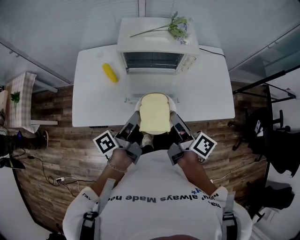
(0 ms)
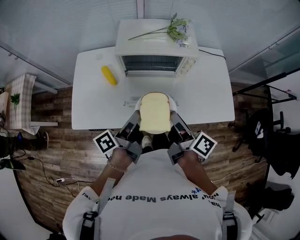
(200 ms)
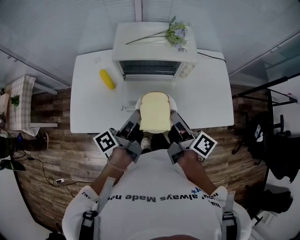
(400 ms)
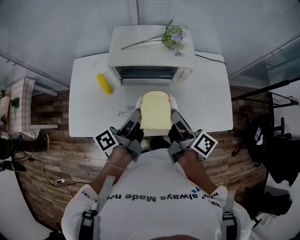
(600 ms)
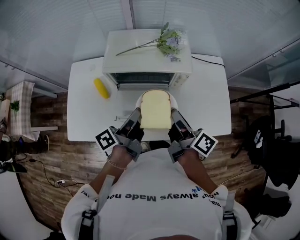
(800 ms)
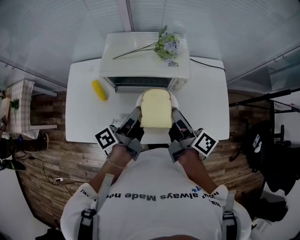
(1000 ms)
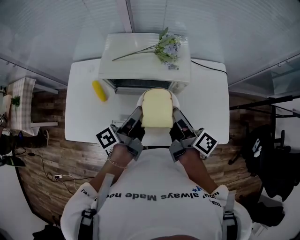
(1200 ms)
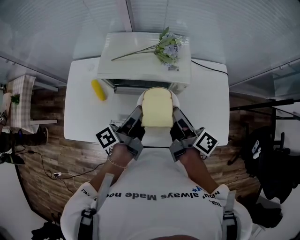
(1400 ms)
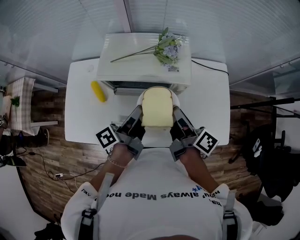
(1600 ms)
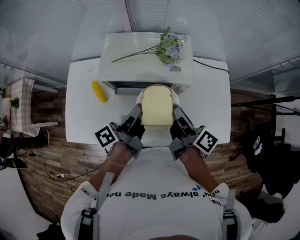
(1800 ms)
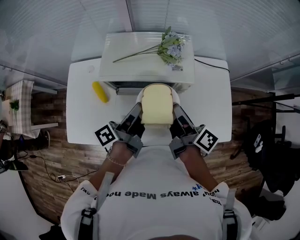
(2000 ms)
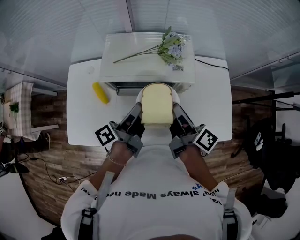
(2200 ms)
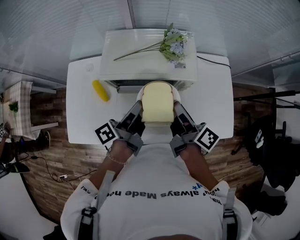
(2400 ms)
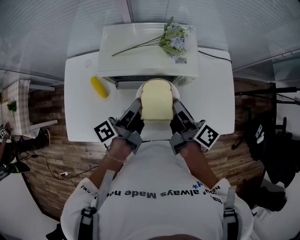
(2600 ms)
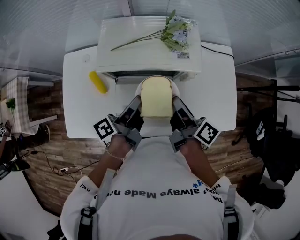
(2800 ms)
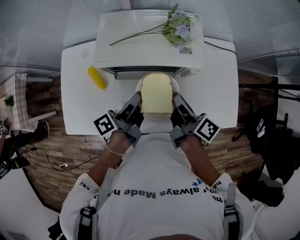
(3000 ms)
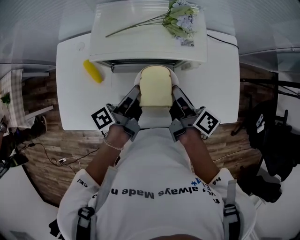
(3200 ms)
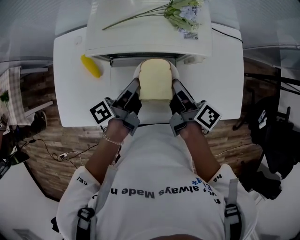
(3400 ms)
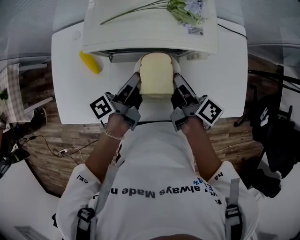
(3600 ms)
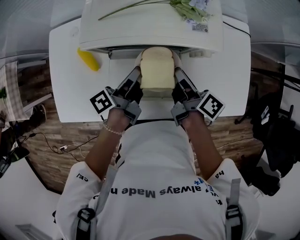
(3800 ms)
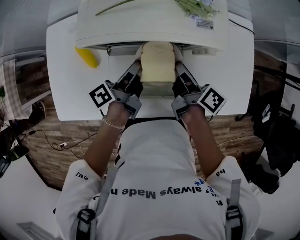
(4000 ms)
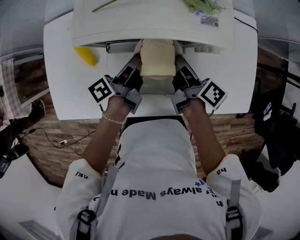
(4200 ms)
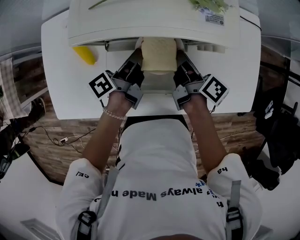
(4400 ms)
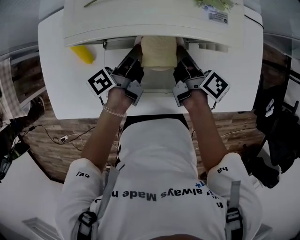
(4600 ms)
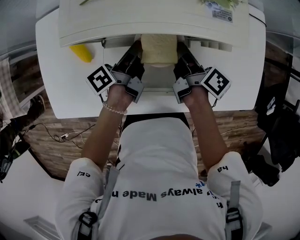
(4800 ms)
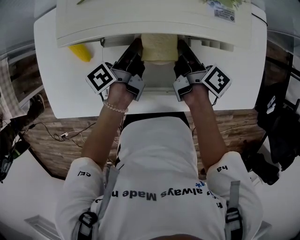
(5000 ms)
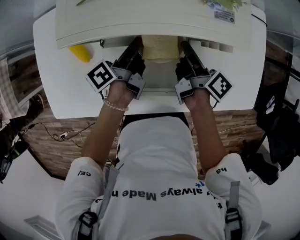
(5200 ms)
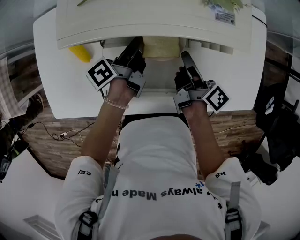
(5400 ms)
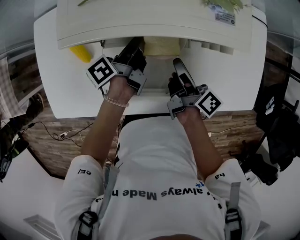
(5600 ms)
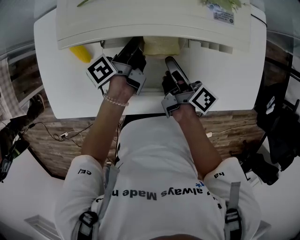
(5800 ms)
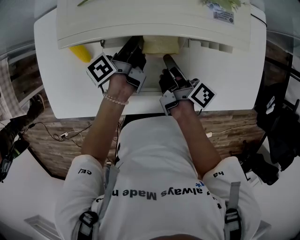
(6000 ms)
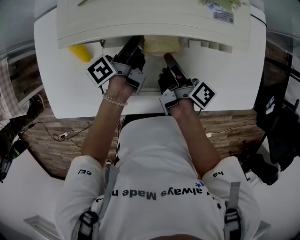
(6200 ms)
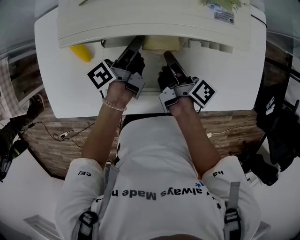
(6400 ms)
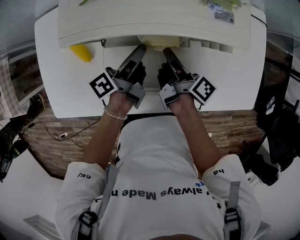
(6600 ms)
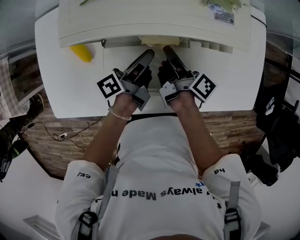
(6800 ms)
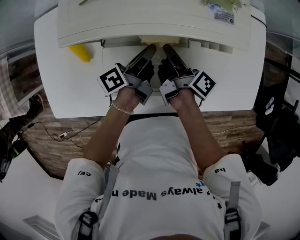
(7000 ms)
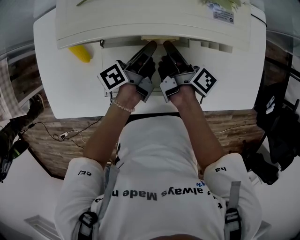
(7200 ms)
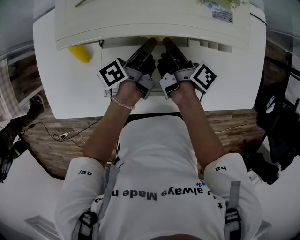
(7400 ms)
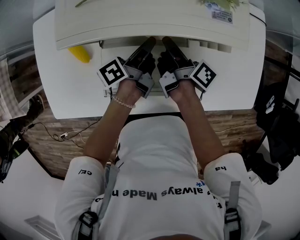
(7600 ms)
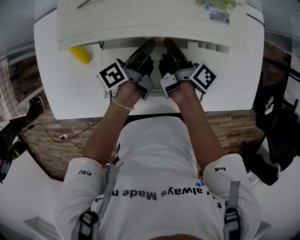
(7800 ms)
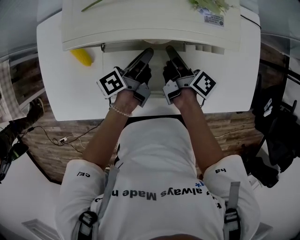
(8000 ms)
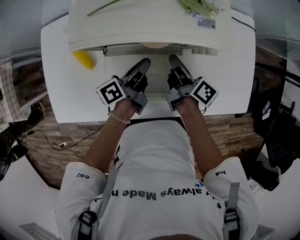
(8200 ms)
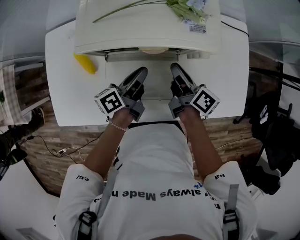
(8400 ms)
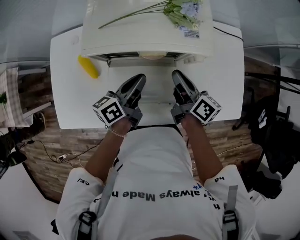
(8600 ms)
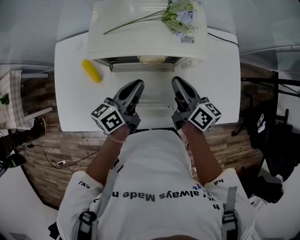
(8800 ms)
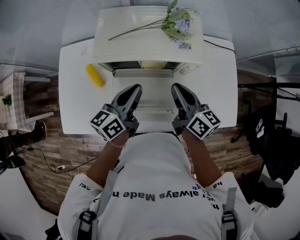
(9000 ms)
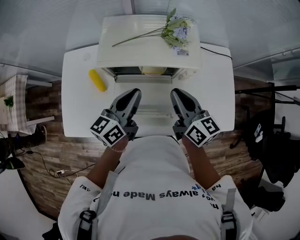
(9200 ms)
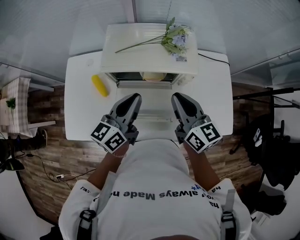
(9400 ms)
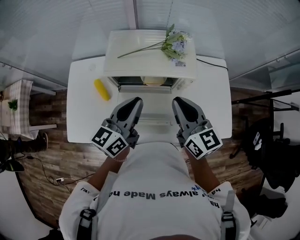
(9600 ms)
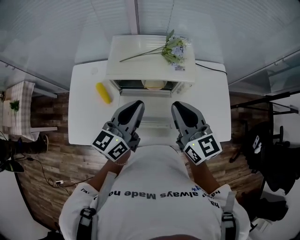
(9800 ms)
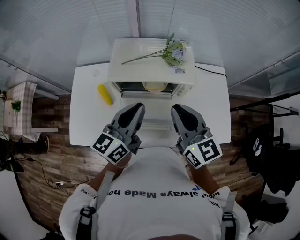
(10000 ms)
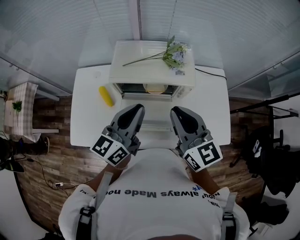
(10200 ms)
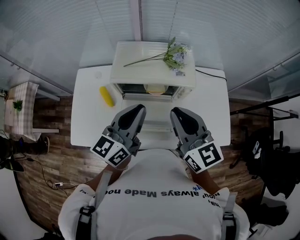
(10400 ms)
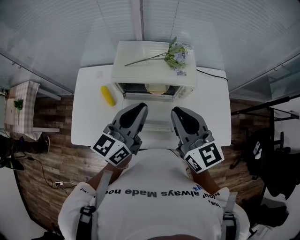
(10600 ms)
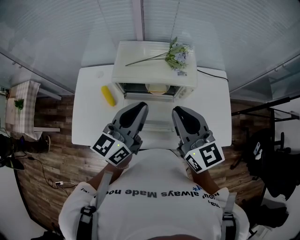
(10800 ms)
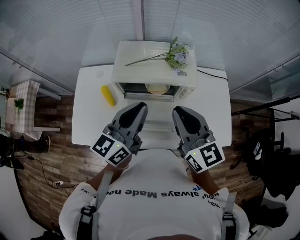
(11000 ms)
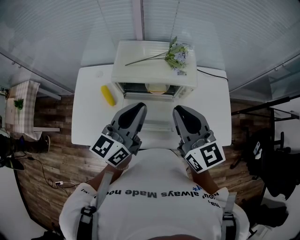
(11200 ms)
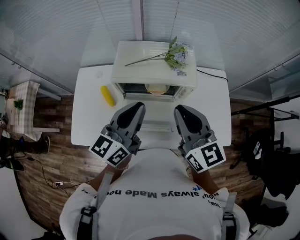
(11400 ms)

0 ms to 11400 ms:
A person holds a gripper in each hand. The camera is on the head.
0 ms to 1400 ms: The right gripper changes place by about 20 cm.
1400 ms to 2800 ms: The right gripper moves some 5 cm.
2800 ms to 4200 ms: The right gripper moves downward, approximately 15 cm.
5600 ms to 7200 ms: The right gripper shifts by some 5 cm.
7200 ms to 8600 ms: The right gripper shifts about 10 cm upward, and rotates roughly 30 degrees.
8600 ms to 10000 ms: The right gripper shifts approximately 25 cm upward, and rolls counterclockwise, seen from behind, by some 50 degrees.

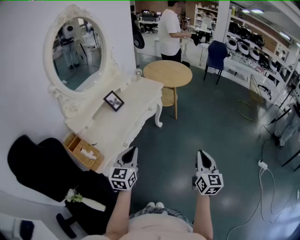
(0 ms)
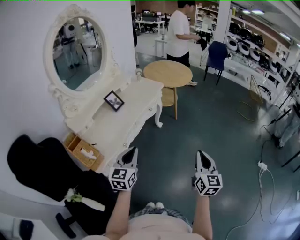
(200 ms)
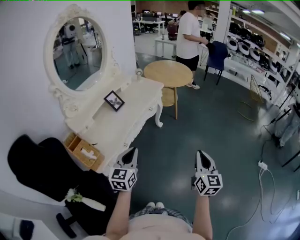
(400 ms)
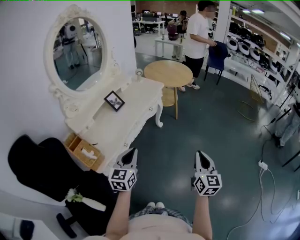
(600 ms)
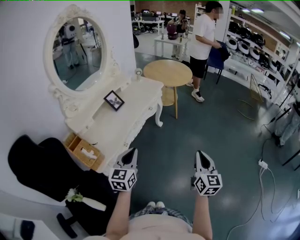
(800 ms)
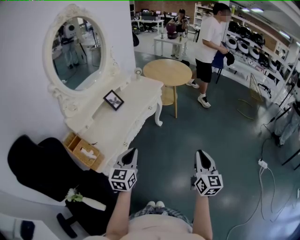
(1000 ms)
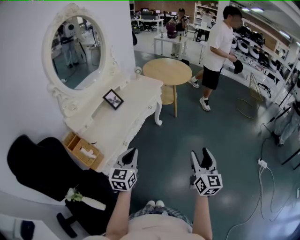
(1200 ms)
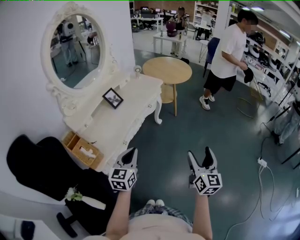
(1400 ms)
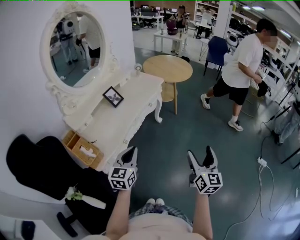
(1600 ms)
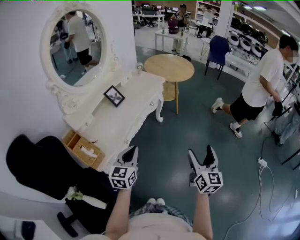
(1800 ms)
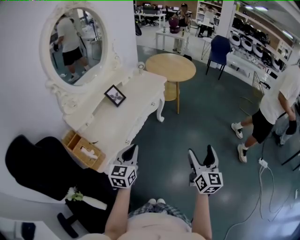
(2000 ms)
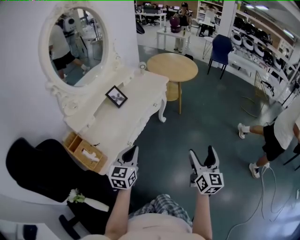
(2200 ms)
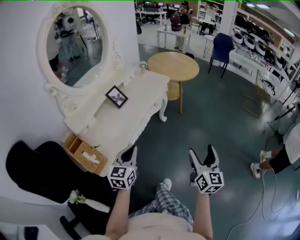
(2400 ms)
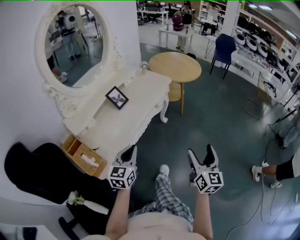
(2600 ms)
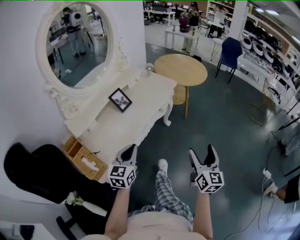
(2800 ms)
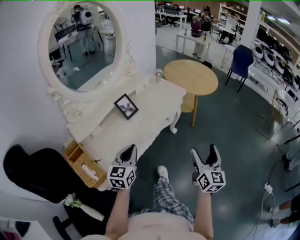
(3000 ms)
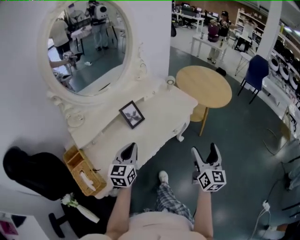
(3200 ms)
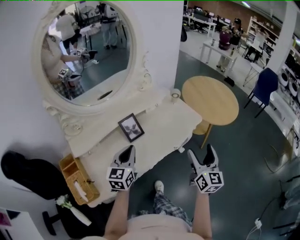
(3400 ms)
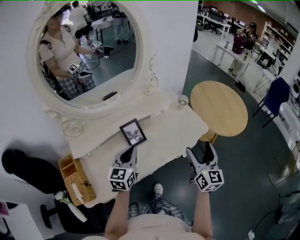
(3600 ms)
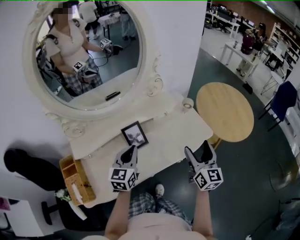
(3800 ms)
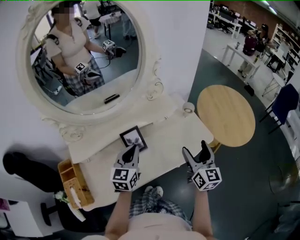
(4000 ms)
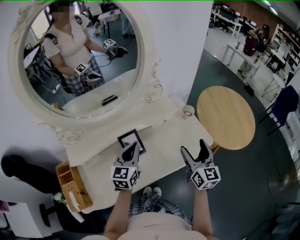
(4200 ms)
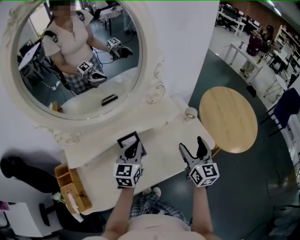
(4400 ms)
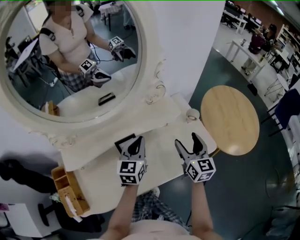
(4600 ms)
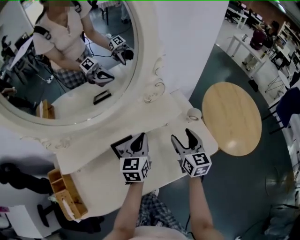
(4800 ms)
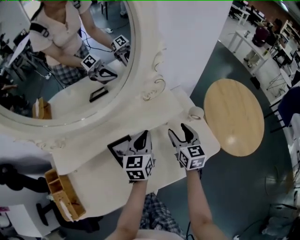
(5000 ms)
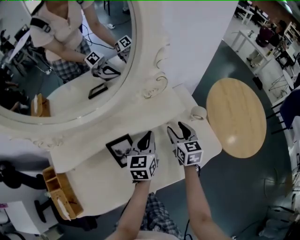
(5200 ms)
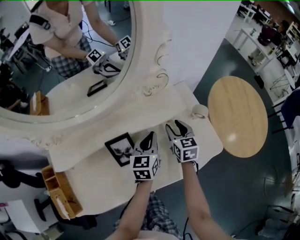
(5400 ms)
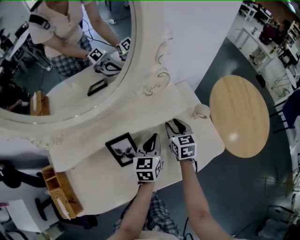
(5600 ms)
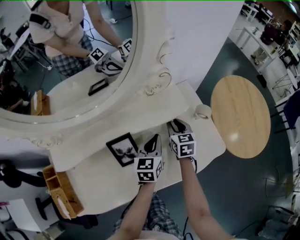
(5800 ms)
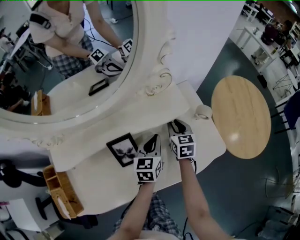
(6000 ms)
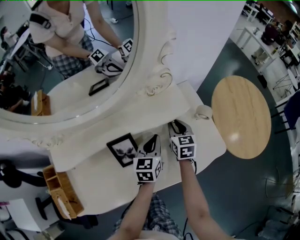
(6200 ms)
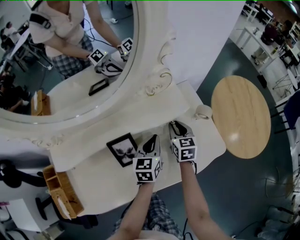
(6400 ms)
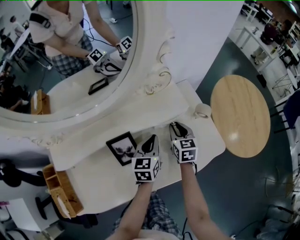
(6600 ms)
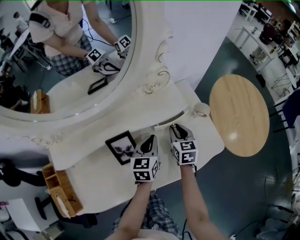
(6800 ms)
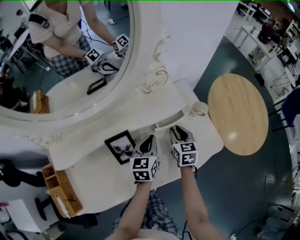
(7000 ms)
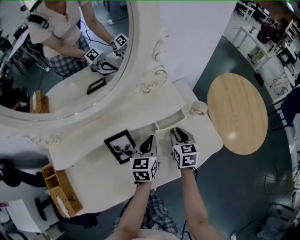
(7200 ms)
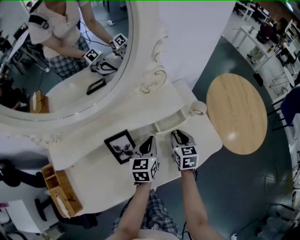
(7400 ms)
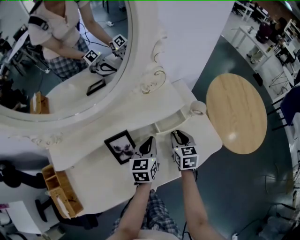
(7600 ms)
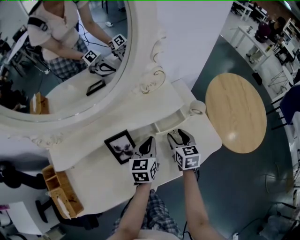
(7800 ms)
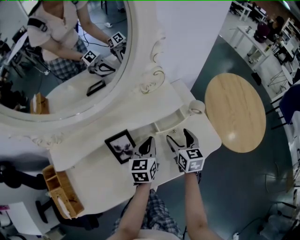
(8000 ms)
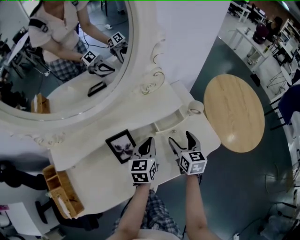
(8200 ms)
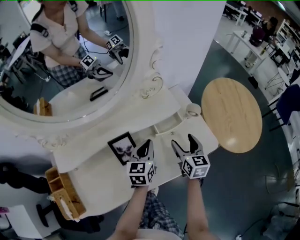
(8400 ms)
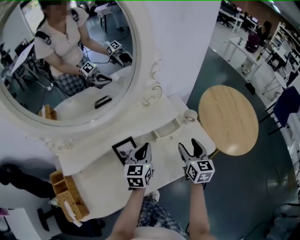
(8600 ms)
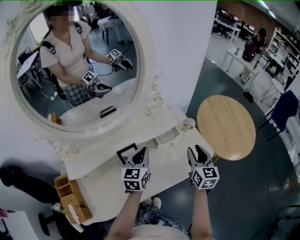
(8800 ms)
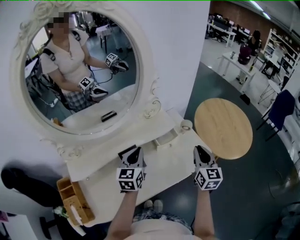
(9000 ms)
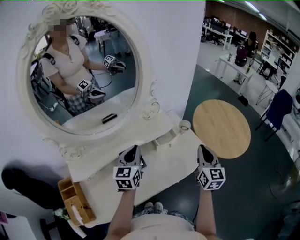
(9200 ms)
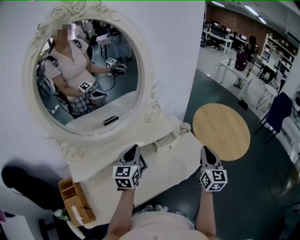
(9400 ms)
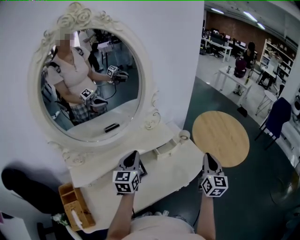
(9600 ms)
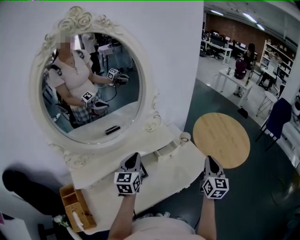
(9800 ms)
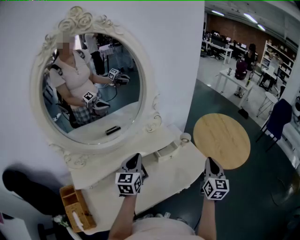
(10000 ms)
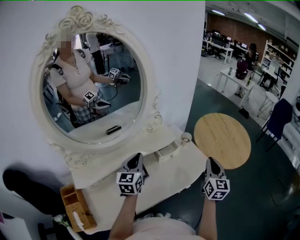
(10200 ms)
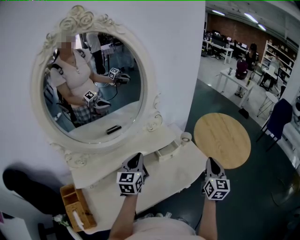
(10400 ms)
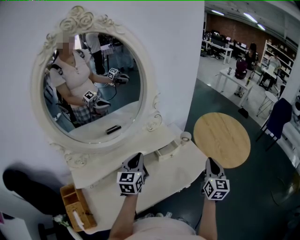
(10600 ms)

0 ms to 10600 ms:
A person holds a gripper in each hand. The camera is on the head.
0 ms to 1600 ms: The right gripper opens up.
1600 ms to 3000 ms: The left gripper heads forward and to the left, covering about 20 cm, while the right gripper goes about 25 cm forward.
3000 ms to 4600 ms: The two grippers travel together, approximately 50 cm. The left gripper turns by some 30 degrees. Meanwhile the right gripper turns by some 40 degrees.
4600 ms to 6000 ms: The right gripper shifts roughly 20 cm downward and forward, swivels about 20 degrees, and closes. Meanwhile the left gripper moves downward and to the right, about 15 cm.
6000 ms to 7600 ms: The right gripper heads backward, covering approximately 5 cm.
7600 ms to 9000 ms: The left gripper goes approximately 15 cm upward and to the left; the right gripper moves upward and backward, roughly 25 cm, swivels some 30 degrees, and opens and closes again.
9000 ms to 10600 ms: The right gripper goes roughly 5 cm to the right.

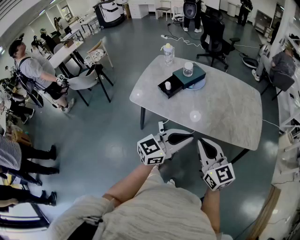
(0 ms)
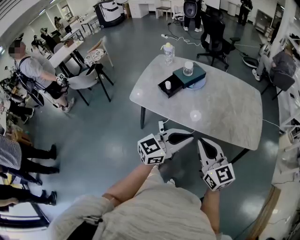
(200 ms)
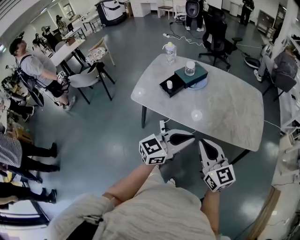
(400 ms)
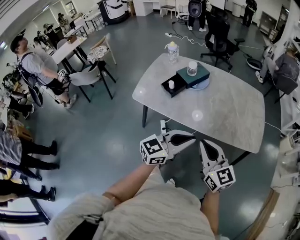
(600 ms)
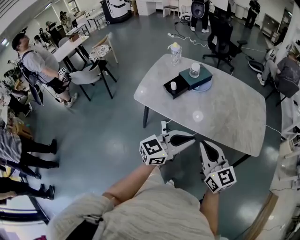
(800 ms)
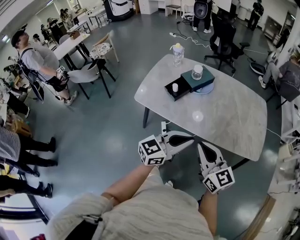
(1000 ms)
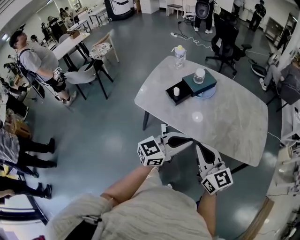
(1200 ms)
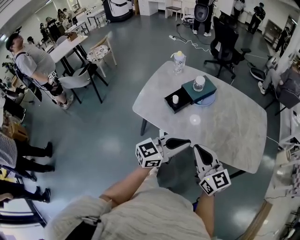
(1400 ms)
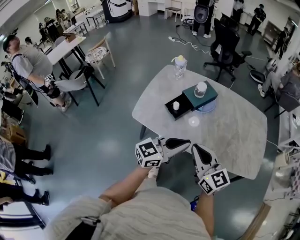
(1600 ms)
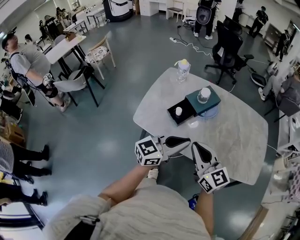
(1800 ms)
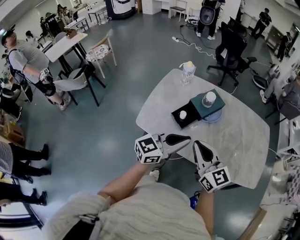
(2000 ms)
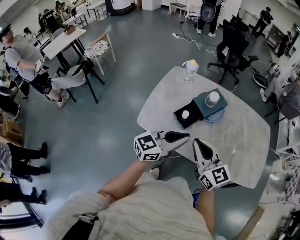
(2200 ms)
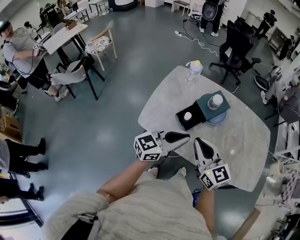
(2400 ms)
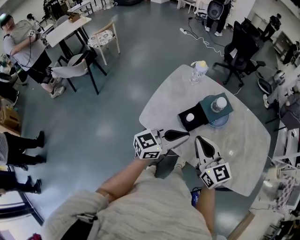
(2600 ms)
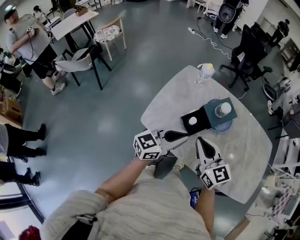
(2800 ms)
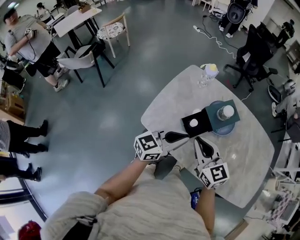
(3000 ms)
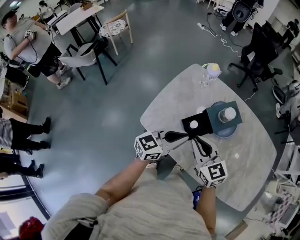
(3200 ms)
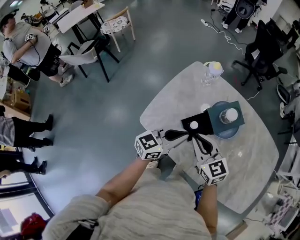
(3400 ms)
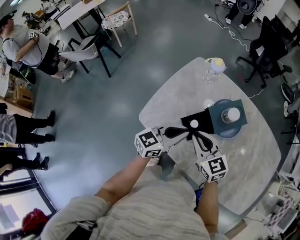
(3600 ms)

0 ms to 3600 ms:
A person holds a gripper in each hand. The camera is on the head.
0 ms to 1800 ms: Both grippers travel together forward and to the left, about 25 cm.
1800 ms to 3600 ms: The left gripper goes about 25 cm forward, to the left and downward, and turns by some 20 degrees, while the right gripper moves forward, downward and to the left, roughly 25 cm, and changes its angle by some 30 degrees.
